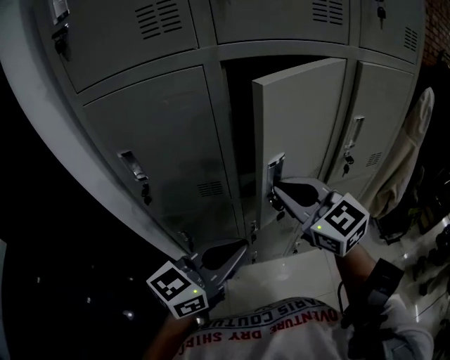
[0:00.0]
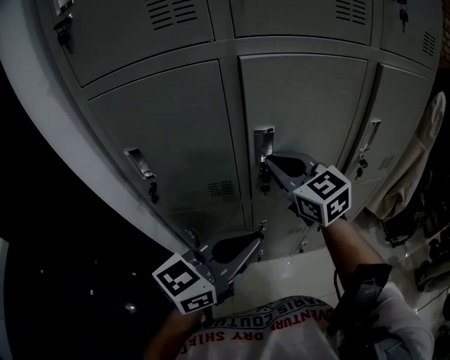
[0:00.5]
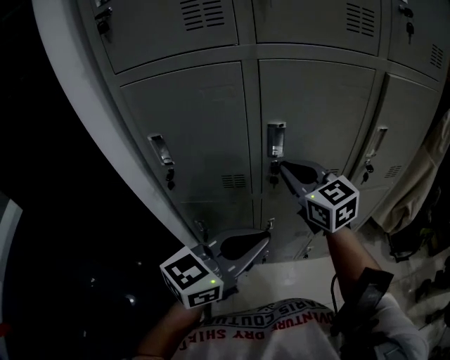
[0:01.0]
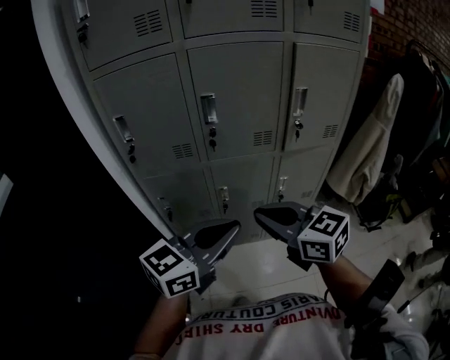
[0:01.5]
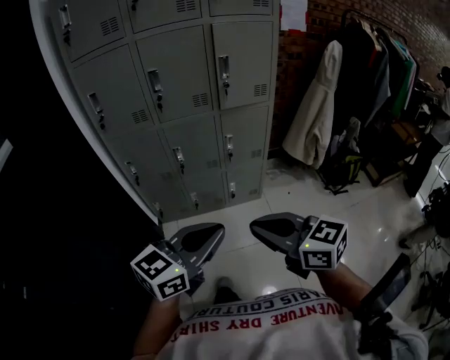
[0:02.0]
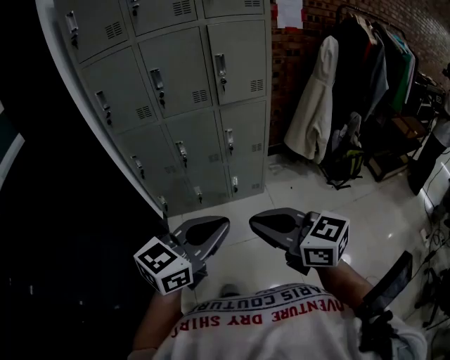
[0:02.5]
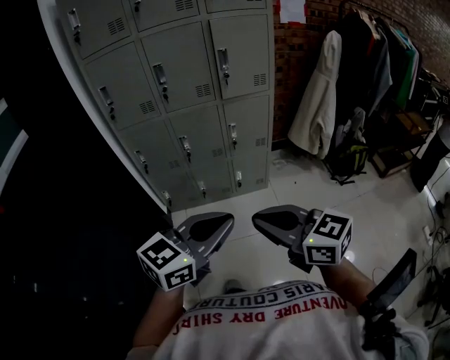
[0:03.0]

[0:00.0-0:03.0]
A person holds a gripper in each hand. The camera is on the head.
0:00.0 to 0:01.5: The right gripper heads backward, covering some 20 cm, and changes its angle by roughly 20 degrees. Meanwhile the left gripper goes some 15 cm backward and to the right.
0:01.5 to 0:03.0: Both grippers move backward and to the right, about 40 cm.

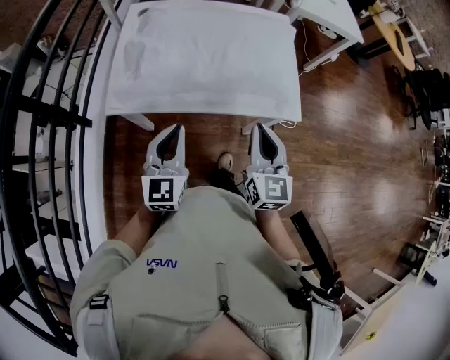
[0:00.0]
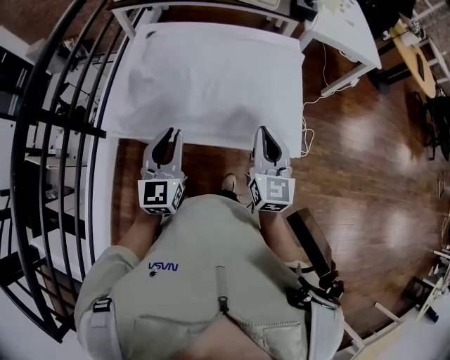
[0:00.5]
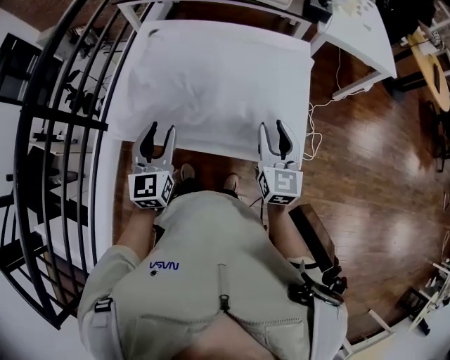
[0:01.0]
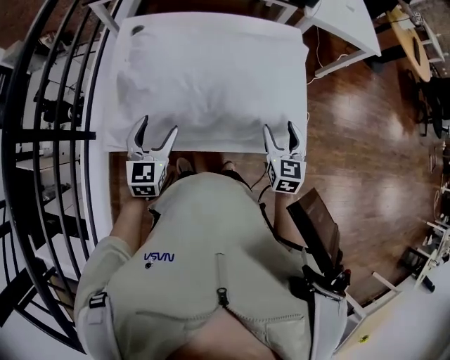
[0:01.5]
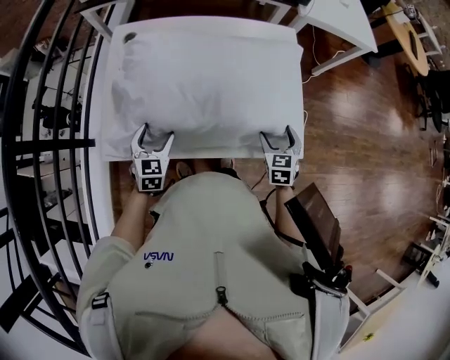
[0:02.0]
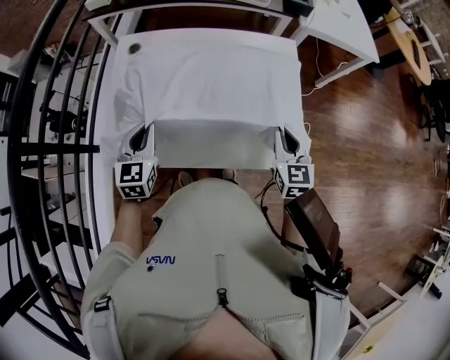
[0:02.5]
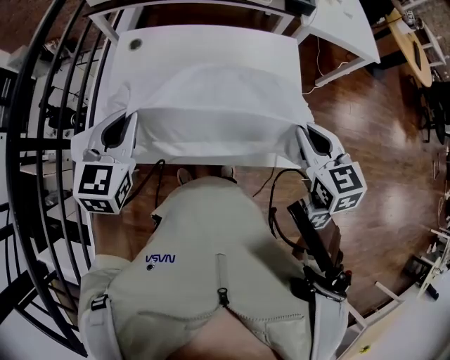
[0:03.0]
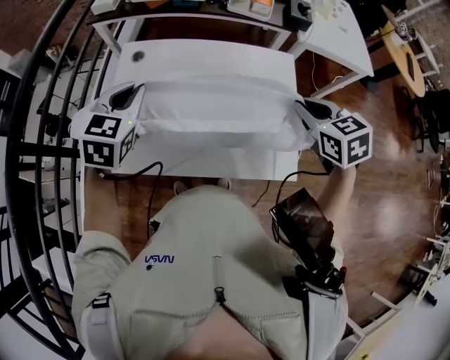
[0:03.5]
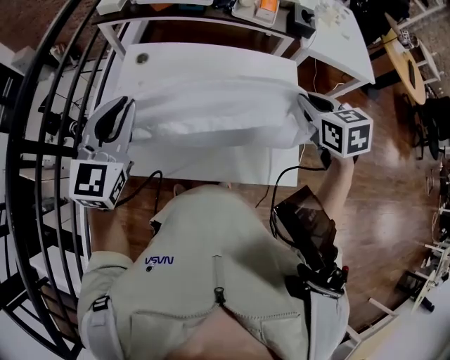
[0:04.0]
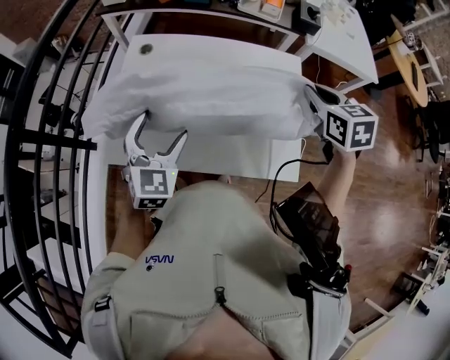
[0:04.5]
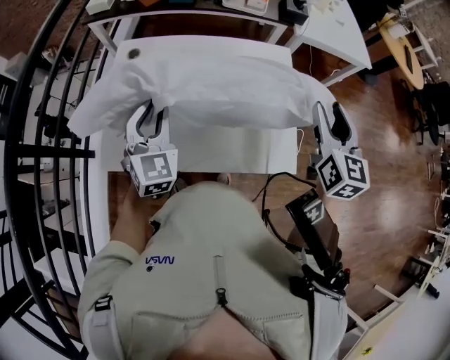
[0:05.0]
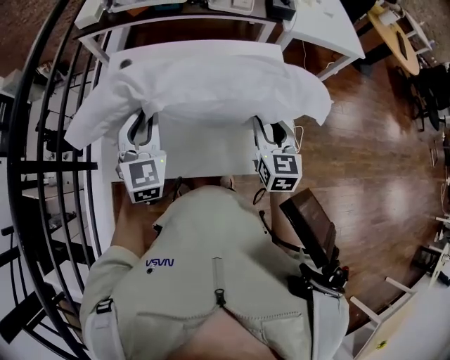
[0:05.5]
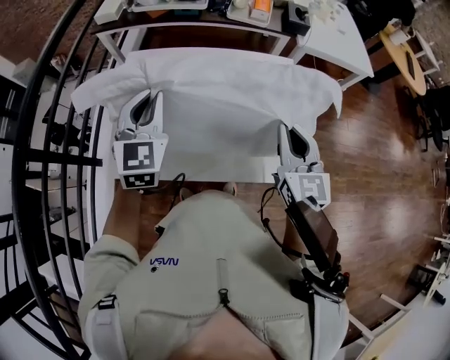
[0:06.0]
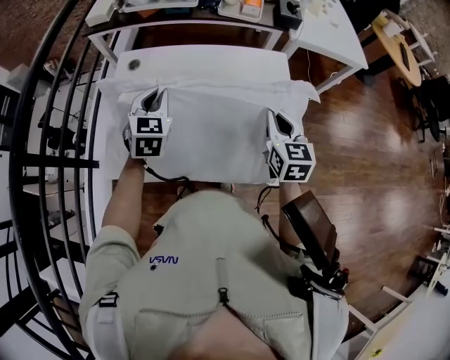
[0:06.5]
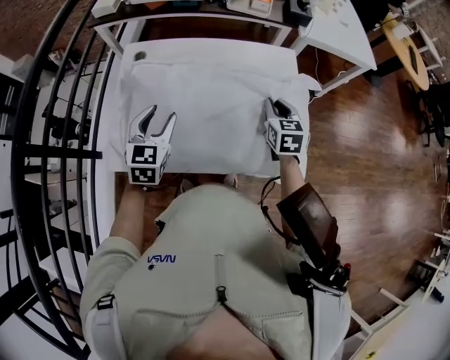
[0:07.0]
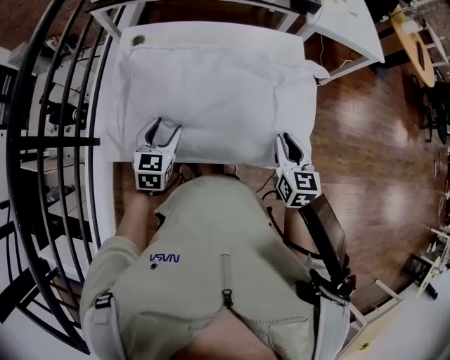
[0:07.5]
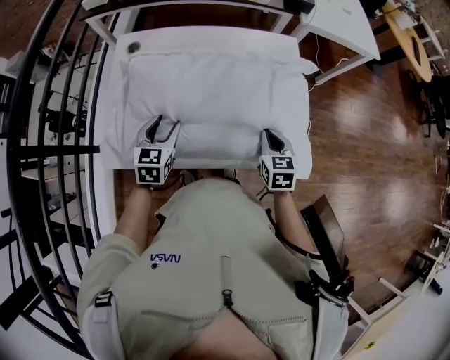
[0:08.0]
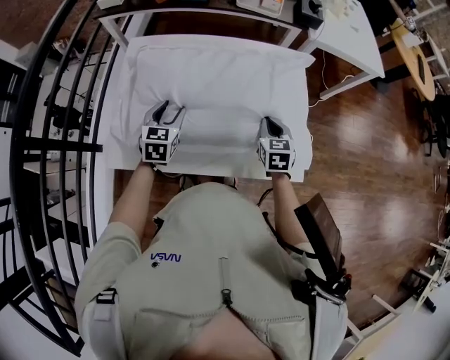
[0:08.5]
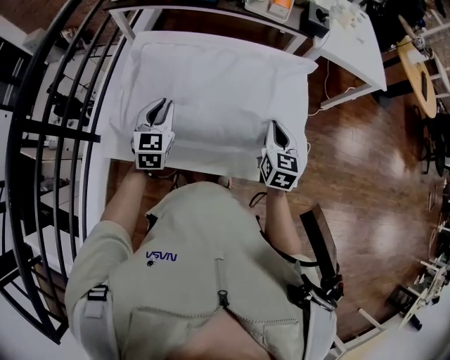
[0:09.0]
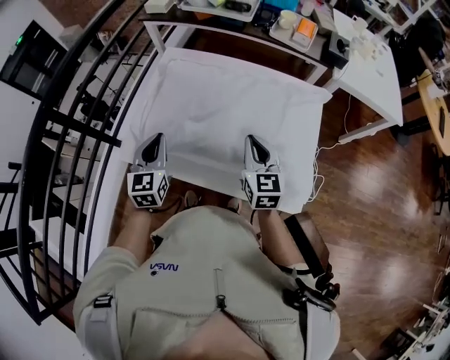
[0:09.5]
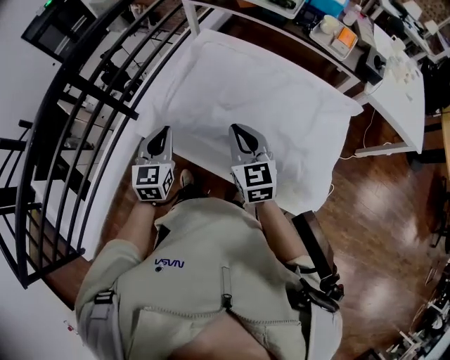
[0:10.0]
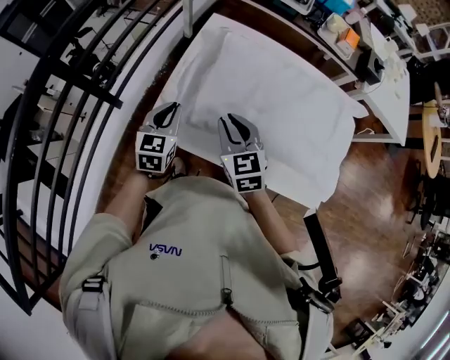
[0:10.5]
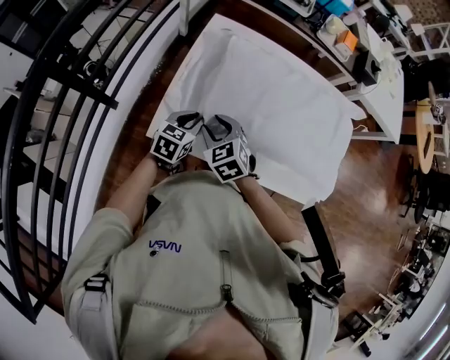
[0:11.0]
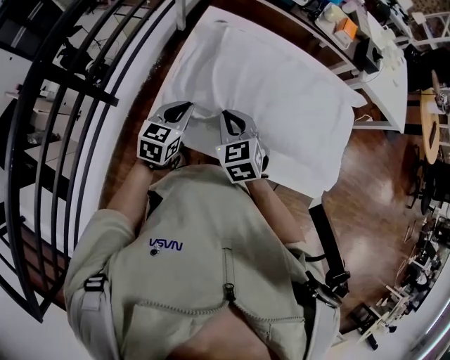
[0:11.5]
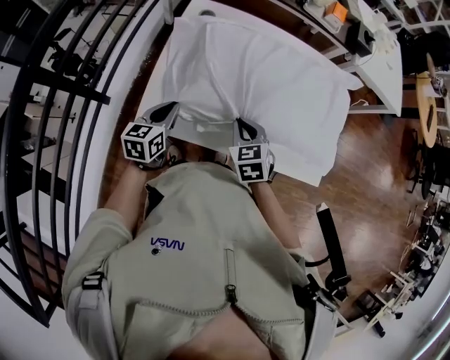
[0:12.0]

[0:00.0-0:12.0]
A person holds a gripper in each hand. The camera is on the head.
0:00.0 to 0:02.0: The right gripper goes some 25 cm downward, forward and to the right, angles its fingers downward, by approximately 30 degrees, and opens its fingers, while the left gripper shifts roughly 25 cm forward and downward, rotates some 30 degrees, and opens.
0:02.0 to 0:04.0: The left gripper is displaced upward by roughly 30 cm, turns by about 30 degrees, and closes its fingers. Meanwhile the right gripper shifts some 30 cm upward and forward, rotates approximately 20 degrees, and closes.
0:04.0 to 0:06.0: The right gripper moves up and down over about 15 cm, changing direction 2 times, points its fingers approximately 30 degrees further upward, and opens, then closes again. The left gripper goes roughly 5 cm to the right, moves about 10 cm downward and comes back, and opens and closes again.
0:06.0 to 0:08.0: Both grippers travel together downward, approximately 20 cm. The left gripper swivels about 30 degrees, and opens. Meanwhile the right gripper rotates roughly 30 degrees, and opens, then closes once more.
0:08.0 to 0:10.0: The right gripper ends up some 25 cm from where it was, and swivels roughly 40 degrees. The left gripper shifts by approximately 15 cm, changes its angle by about 30 degrees, and closes.
0:10.0 to 0:12.0: The left gripper moves downward, about 10 cm, and changes its angle by about 40 degrees. The right gripper moves up and down over roughly 10 cm, changing direction 2 times, turns by roughly 30 degrees, and opens, then closes again.

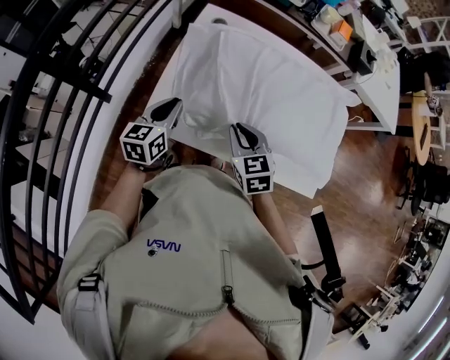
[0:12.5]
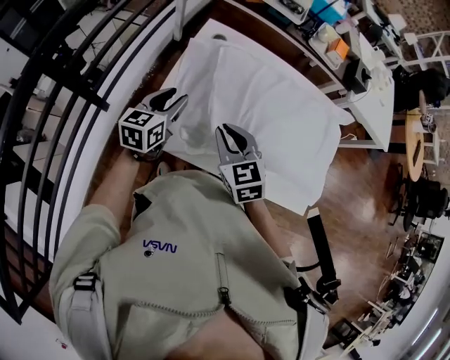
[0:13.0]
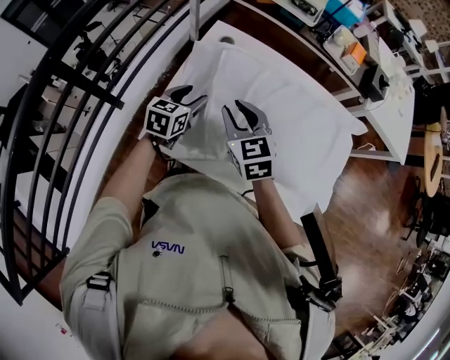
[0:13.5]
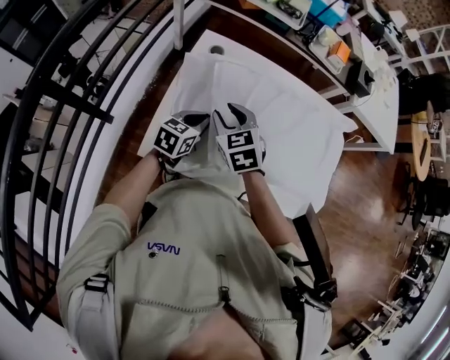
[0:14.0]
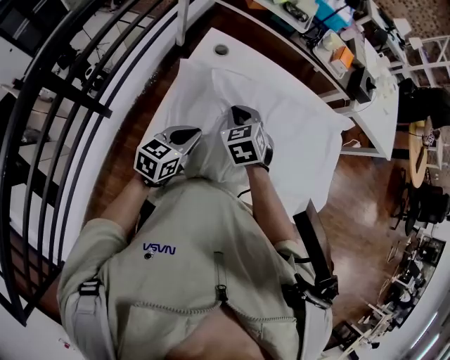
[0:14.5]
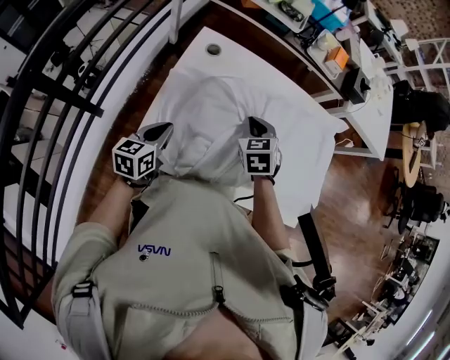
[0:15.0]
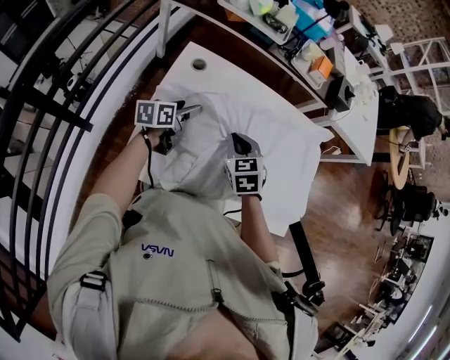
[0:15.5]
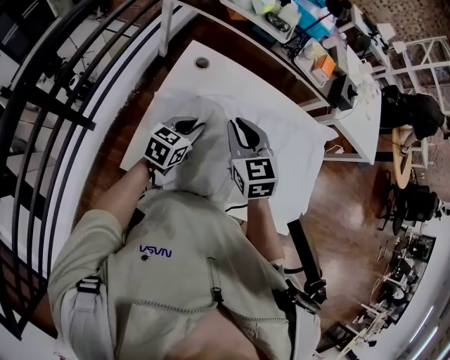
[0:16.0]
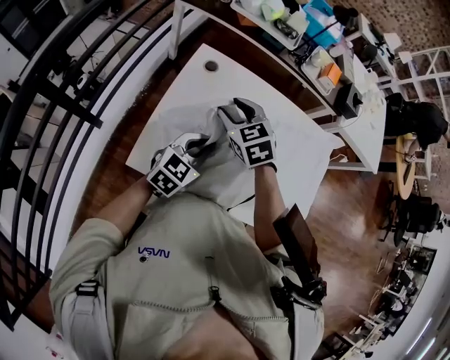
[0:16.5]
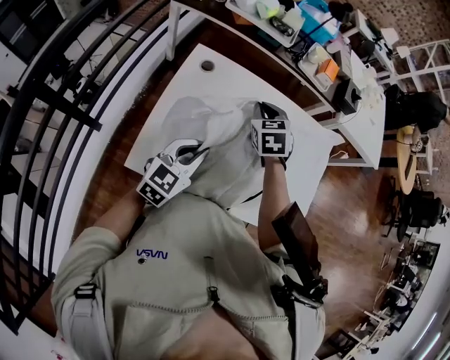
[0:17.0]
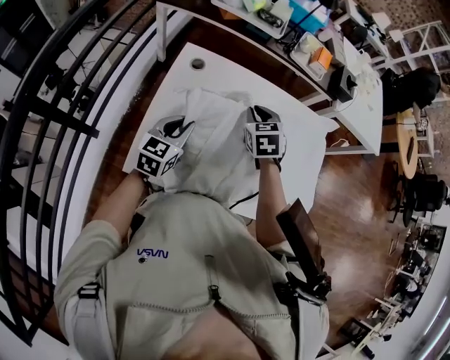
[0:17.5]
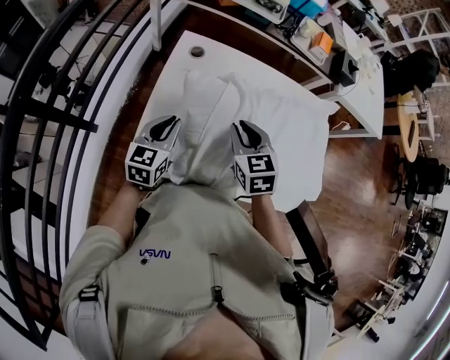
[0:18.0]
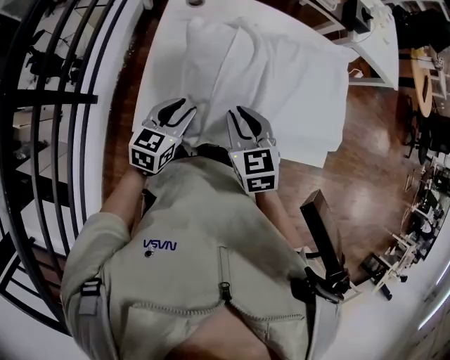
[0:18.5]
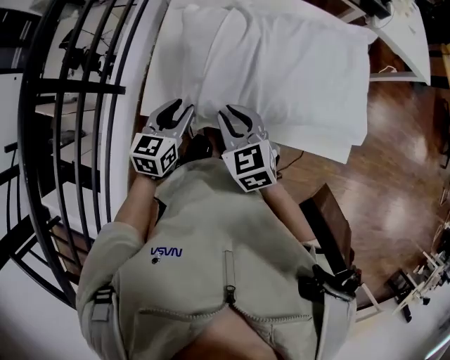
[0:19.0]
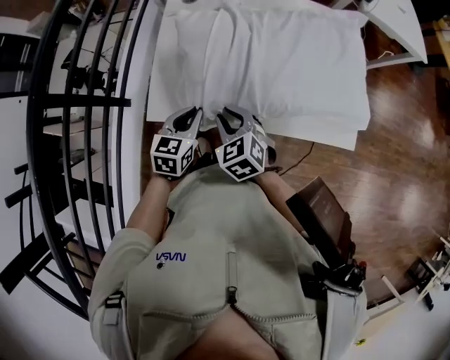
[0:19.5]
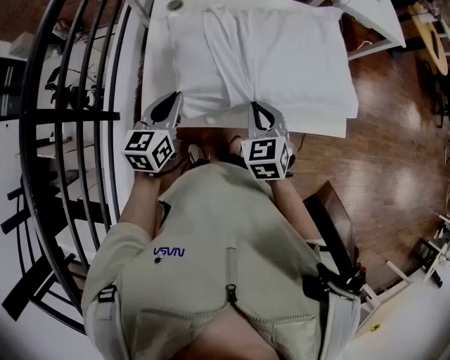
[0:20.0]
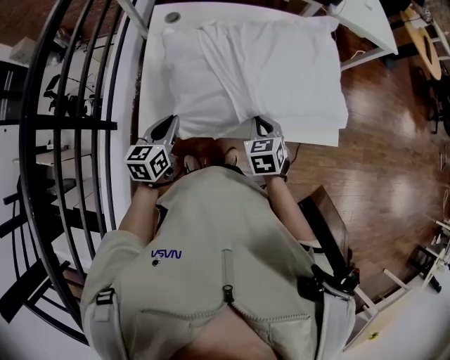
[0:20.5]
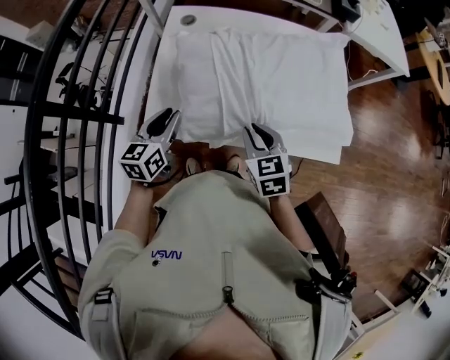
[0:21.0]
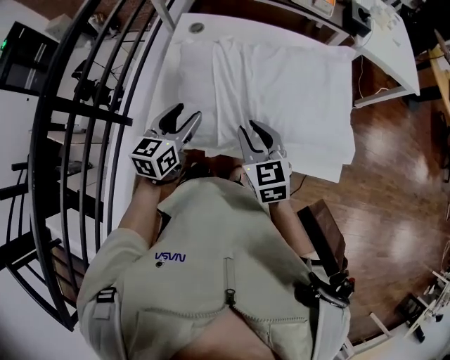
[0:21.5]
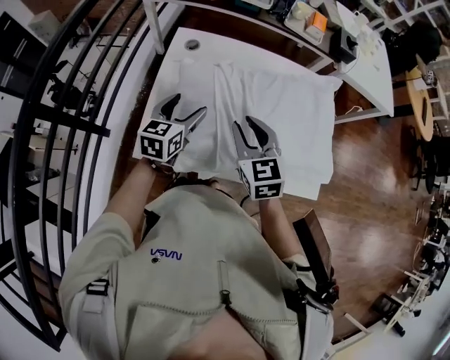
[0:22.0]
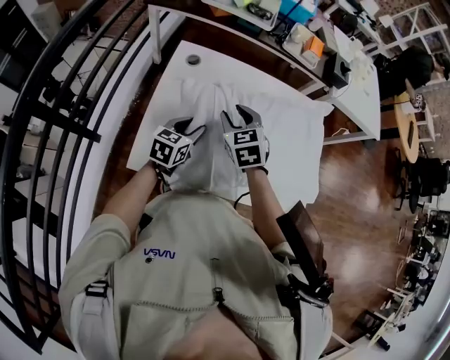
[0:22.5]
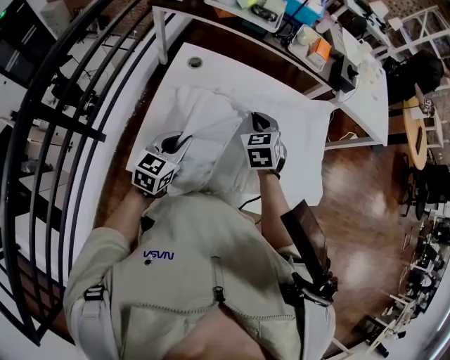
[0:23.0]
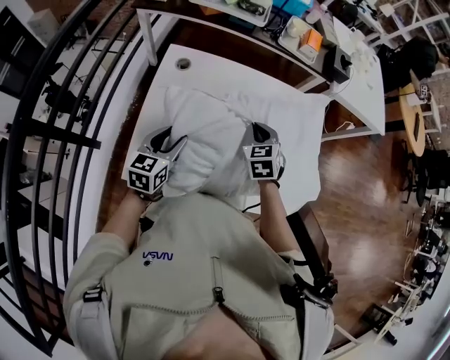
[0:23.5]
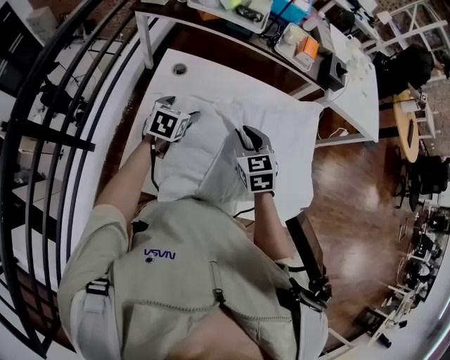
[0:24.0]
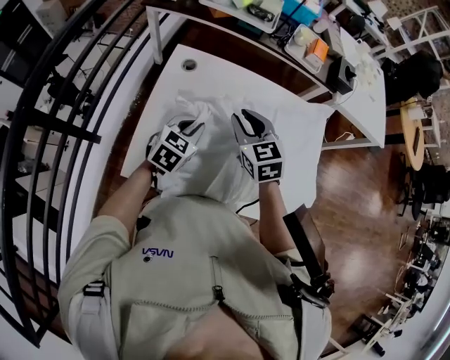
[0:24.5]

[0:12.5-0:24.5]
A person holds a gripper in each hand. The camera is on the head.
0:12.5 to 0:14.5: The right gripper shifts some 15 cm forward, and opens, then closes again. The left gripper travels to the right by about 5 cm, moves approximately 10 cm forward and comes back, and opens, then closes once more.
0:14.5 to 0:16.5: The left gripper travels to the right by roughly 5 cm, travels forward and back again, about 15 cm each way, changes its angle by roughly 20 degrees, and opens, then closes again; the right gripper goes about 5 cm upward, travels to the right and back again, some 10 cm each way, and opens.
0:16.5 to 0:18.5: The left gripper goes about 10 cm to the left, backward and downward; the right gripper shifts about 15 cm backward, swivels approximately 20 degrees, and closes.
0:18.5 to 0:20.5: The right gripper travels to the right and downward by about 15 cm. Meanwhile the left gripper travels backward by about 5 cm, travels upward and back again, roughly 5 cm each way, and closes its fingers.
0:20.5 to 0:22.5: The right gripper heads forward, to the left and upward, covering roughly 25 cm, swivels some 20 degrees, and opens. Meanwhile the left gripper heads forward, covering some 15 cm, and opens its fingers.
0:22.5 to 0:24.5: The right gripper reaches about 10 cm to the right, then returns, while the left gripper moves forward and backward over approximately 15 cm, changing direction 2 times, and closes.
